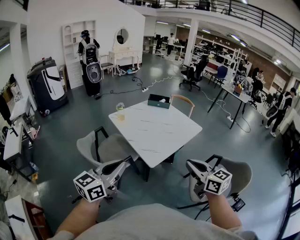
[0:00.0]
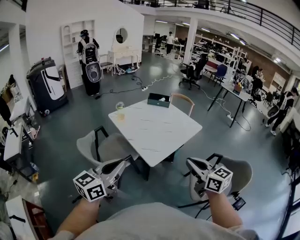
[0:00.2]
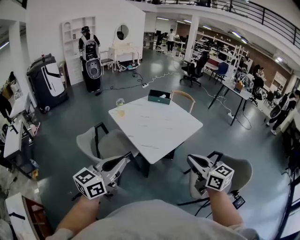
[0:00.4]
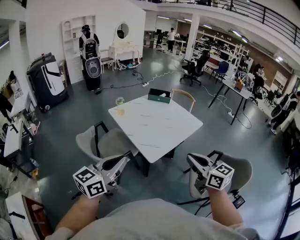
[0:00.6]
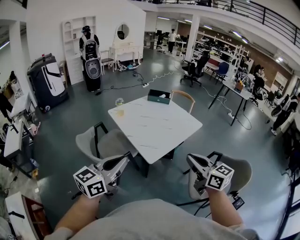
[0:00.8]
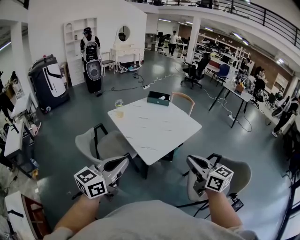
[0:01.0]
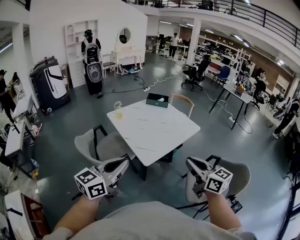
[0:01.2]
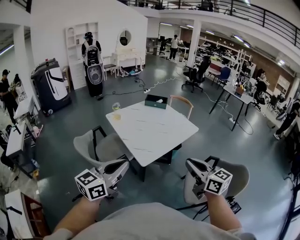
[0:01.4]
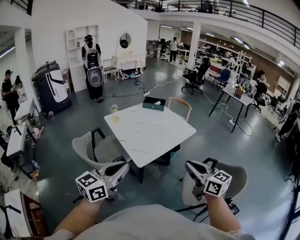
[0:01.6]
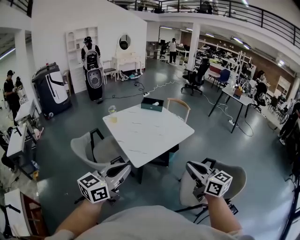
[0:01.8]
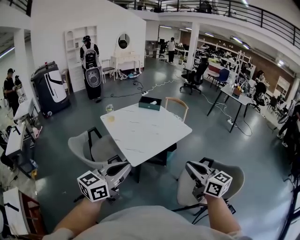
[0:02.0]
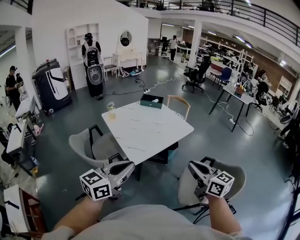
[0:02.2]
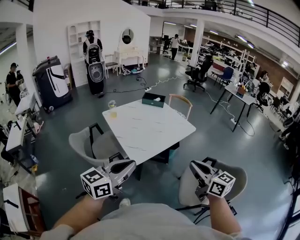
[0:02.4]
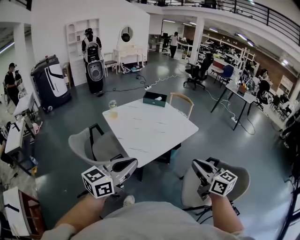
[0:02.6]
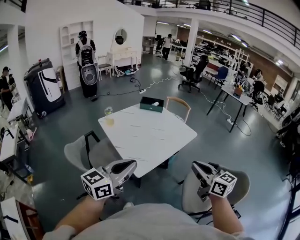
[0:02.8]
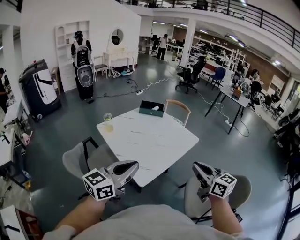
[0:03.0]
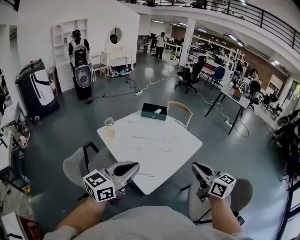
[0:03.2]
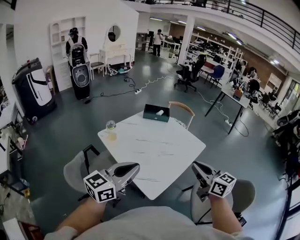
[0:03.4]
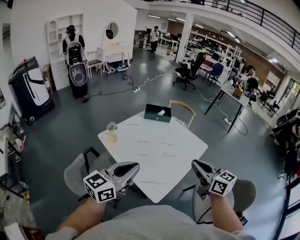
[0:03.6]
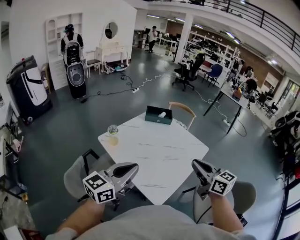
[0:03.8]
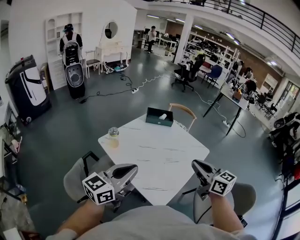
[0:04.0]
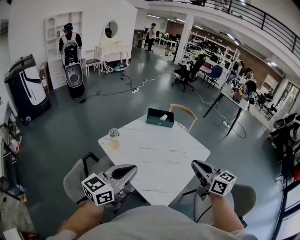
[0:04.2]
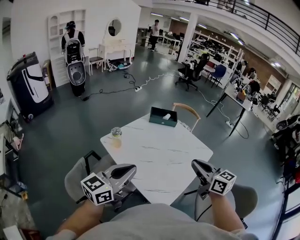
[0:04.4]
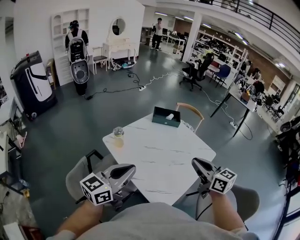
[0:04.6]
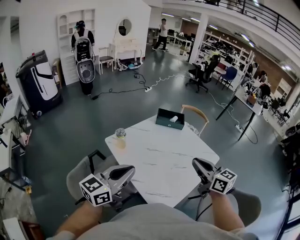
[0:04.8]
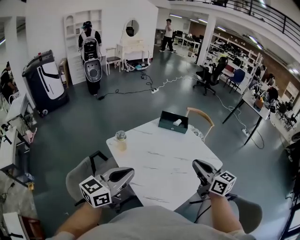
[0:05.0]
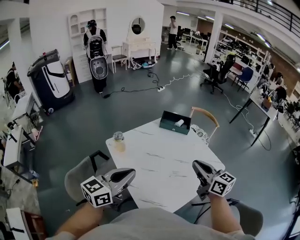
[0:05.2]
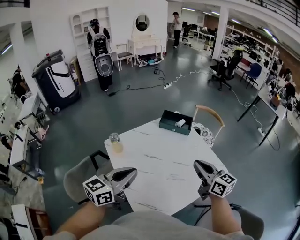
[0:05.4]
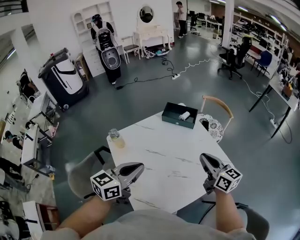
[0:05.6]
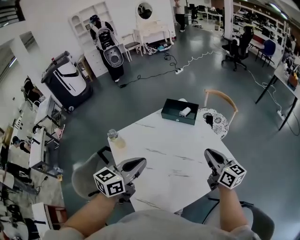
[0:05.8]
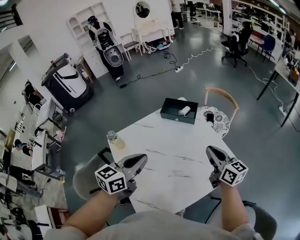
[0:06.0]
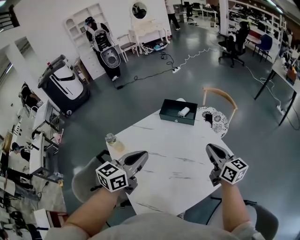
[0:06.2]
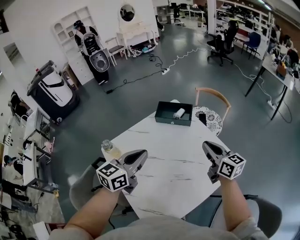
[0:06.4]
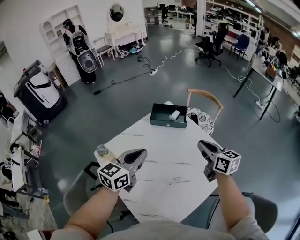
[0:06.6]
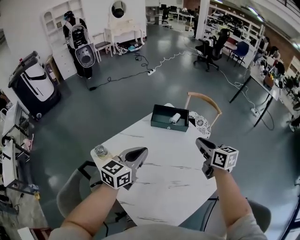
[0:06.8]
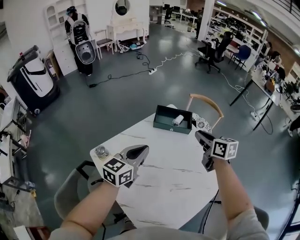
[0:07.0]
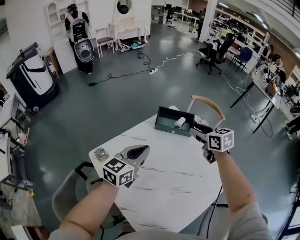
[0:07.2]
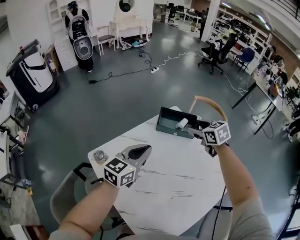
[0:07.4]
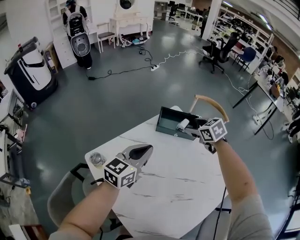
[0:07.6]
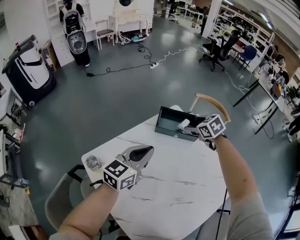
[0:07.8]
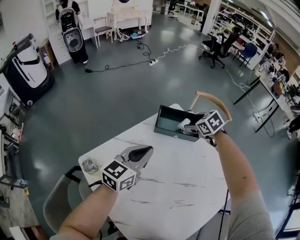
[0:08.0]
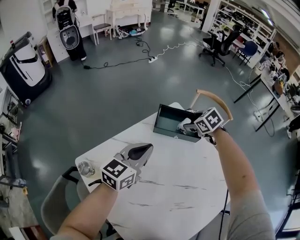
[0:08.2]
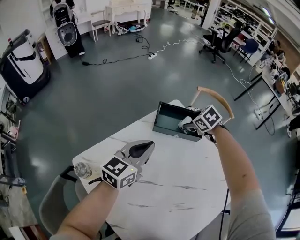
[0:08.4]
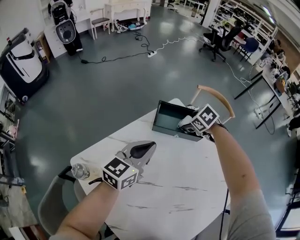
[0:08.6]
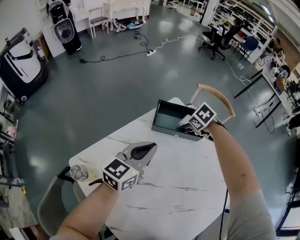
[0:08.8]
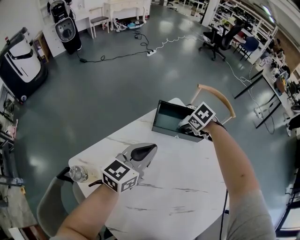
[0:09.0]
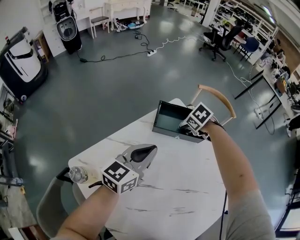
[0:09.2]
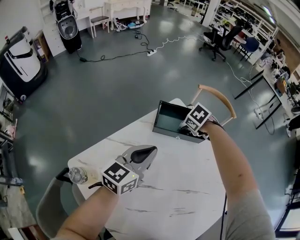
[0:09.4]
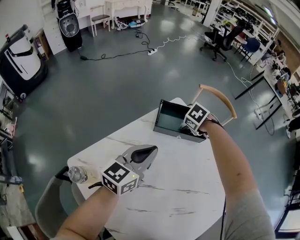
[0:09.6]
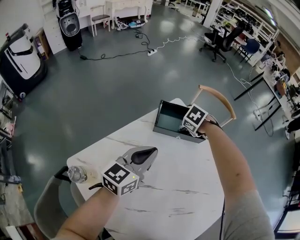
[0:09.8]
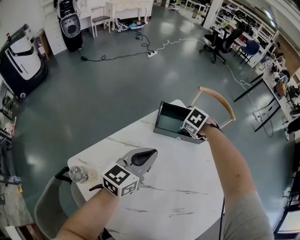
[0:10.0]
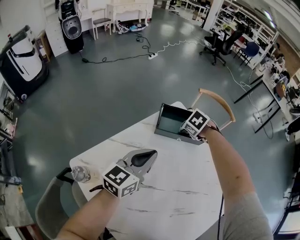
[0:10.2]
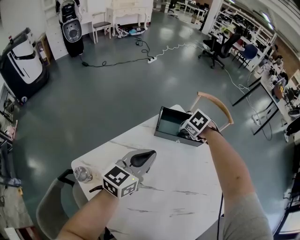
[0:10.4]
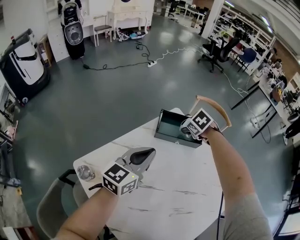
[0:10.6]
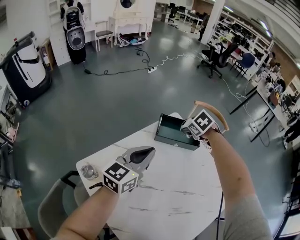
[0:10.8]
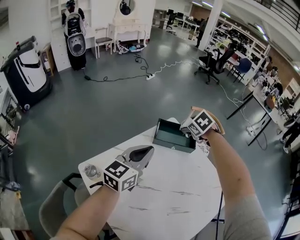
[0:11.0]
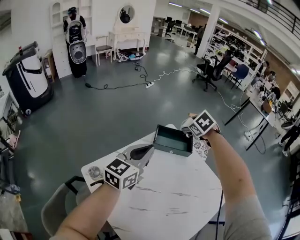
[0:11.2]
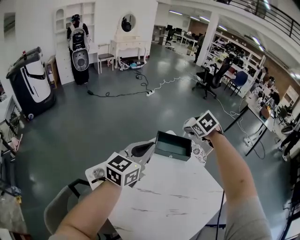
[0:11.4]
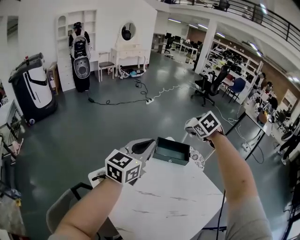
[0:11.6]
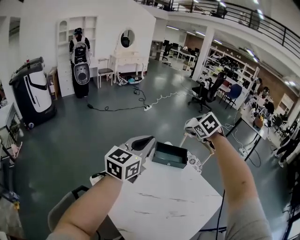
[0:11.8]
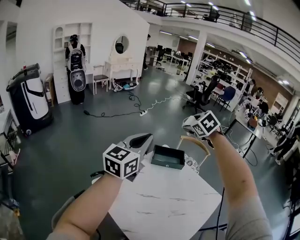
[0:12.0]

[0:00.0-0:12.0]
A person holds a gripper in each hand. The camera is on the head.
0:00.0 to 0:01.6: Both grippers travel together to the right, roughly 10 cm.
0:01.6 to 0:03.0: Both grippers travel together forward, about 15 cm.
0:03.0 to 0:04.4: The right gripper heads forward and to the left, covering roughly 25 cm. Meanwhile the left gripper moves to the left and forward, some 25 cm.
0:04.4 to 0:06.0: The right gripper travels forward, to the right and downward by some 35 cm, while the left gripper goes roughly 25 cm forward and to the right, and swivels some 30 degrees.
0:06.0 to 0:07.6: The right gripper is displaced forward and to the left by some 30 cm, tilts its fingers approximately 40 degrees downward, and opens its fingers. The left gripper goes some 20 cm forward.
0:07.6 to 0:09.0: The left gripper moves forward and downward, about 10 cm. Meanwhile the right gripper shifts roughly 15 cm downward and forward, and changes its angle by roughly 30 degrees.
0:09.0 to 0:10.4: The grippers make only small movements.
0:10.4 to 0:12.0: The grippers both shift upward by some 35 cm. The right gripper tilts its fingers about 30 degrees upward.

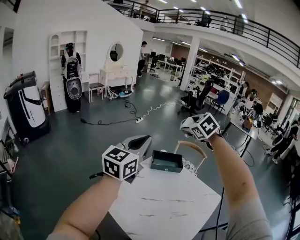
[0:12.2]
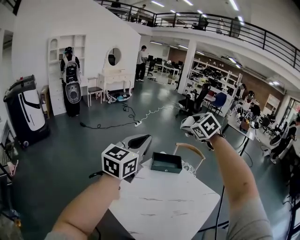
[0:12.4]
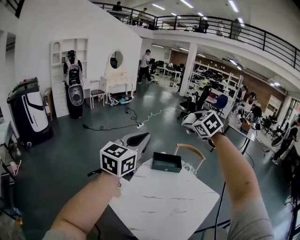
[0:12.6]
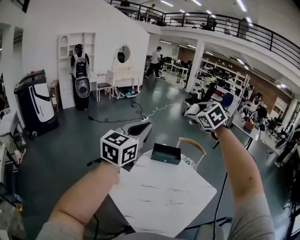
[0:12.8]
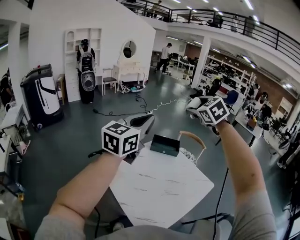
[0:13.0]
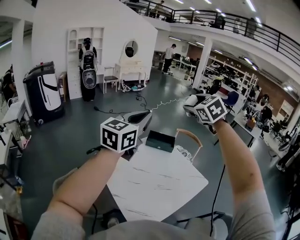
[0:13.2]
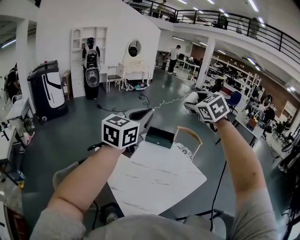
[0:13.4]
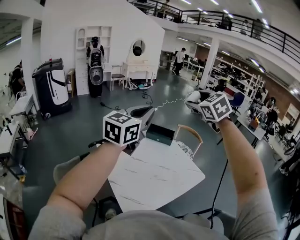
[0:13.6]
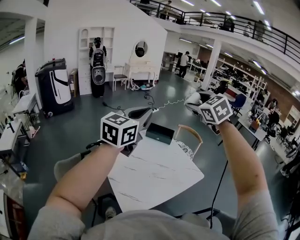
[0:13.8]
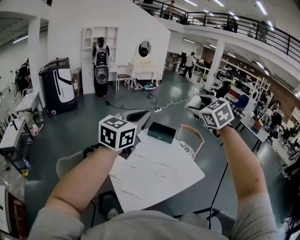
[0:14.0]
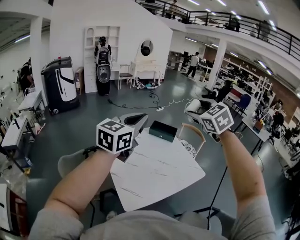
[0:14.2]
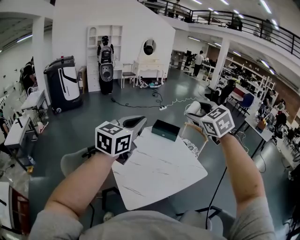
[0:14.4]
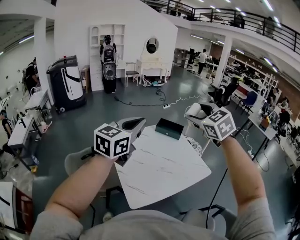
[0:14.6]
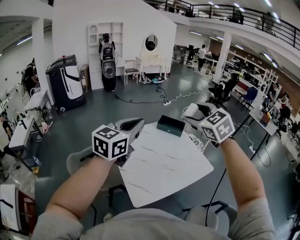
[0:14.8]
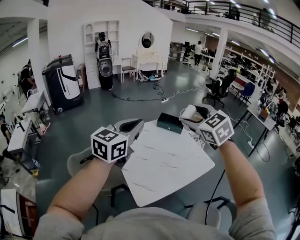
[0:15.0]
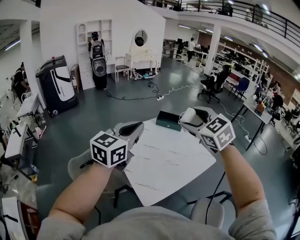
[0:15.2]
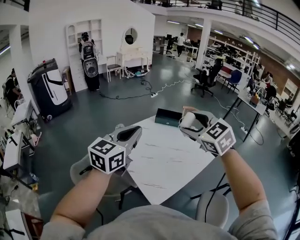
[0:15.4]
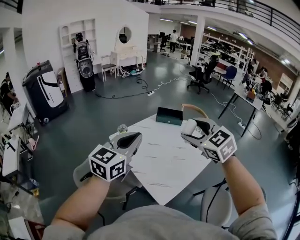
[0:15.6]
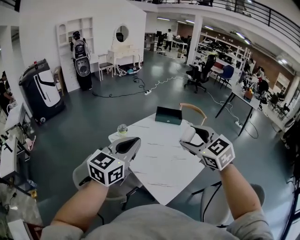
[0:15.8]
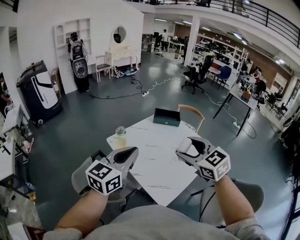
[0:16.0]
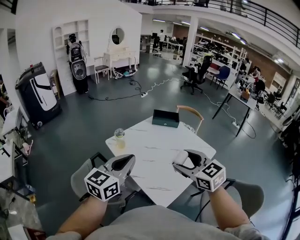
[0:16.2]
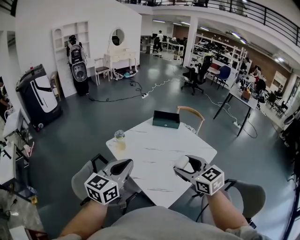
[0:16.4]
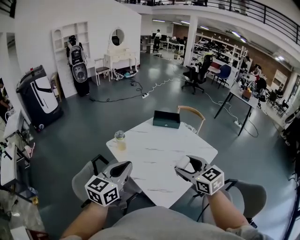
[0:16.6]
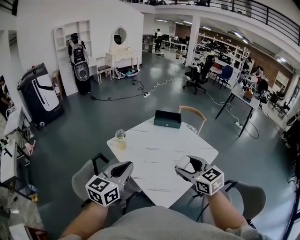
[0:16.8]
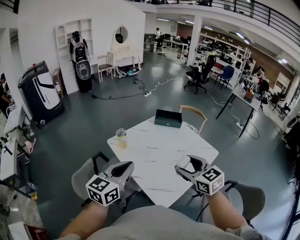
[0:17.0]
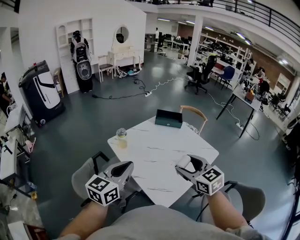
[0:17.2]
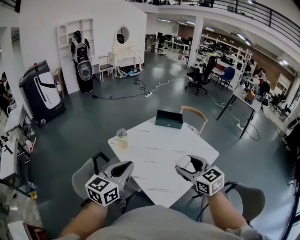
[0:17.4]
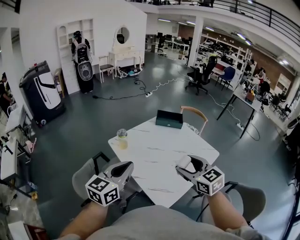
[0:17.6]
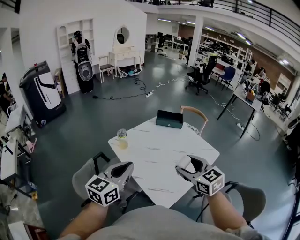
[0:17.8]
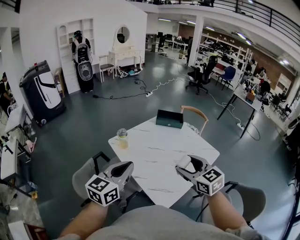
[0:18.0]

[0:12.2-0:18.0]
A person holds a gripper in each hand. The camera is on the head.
0:12.2 to 0:13.6: The right gripper moves backward, upward and to the right, about 30 cm, and turns by approximately 20 degrees, while the left gripper is displaced backward, to the right and upward by about 25 cm.
0:13.6 to 0:15.0: Both grippers move backward and downward, roughly 15 cm.
0:15.0 to 0:16.6: The left gripper heads downward and to the left, covering approximately 20 cm. The right gripper travels downward and backward by roughly 20 cm, and swivels about 30 degrees.
0:16.6 to 0:18.0: Neither gripper changes place.

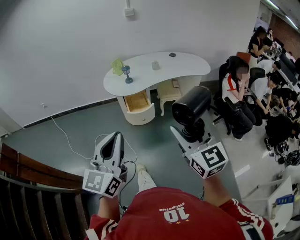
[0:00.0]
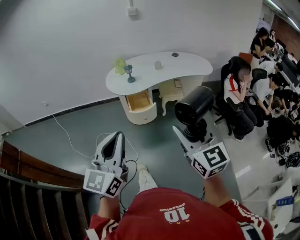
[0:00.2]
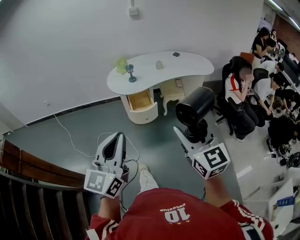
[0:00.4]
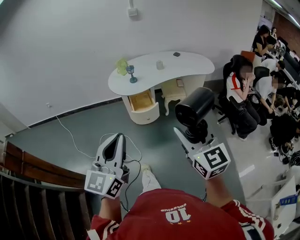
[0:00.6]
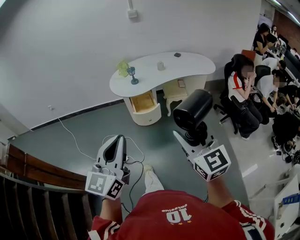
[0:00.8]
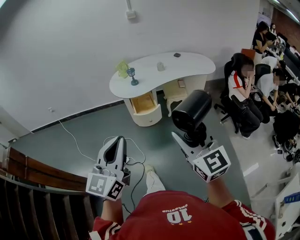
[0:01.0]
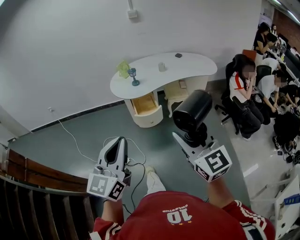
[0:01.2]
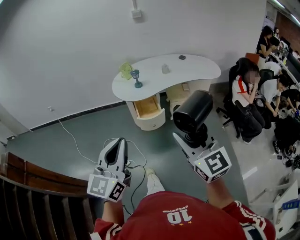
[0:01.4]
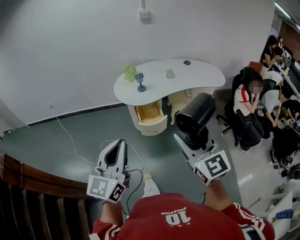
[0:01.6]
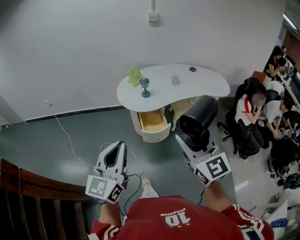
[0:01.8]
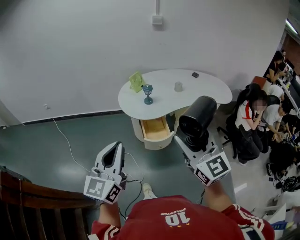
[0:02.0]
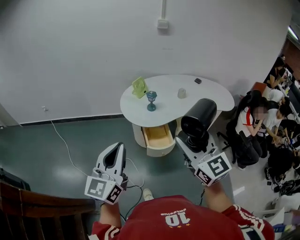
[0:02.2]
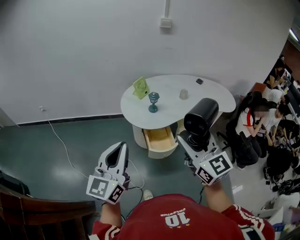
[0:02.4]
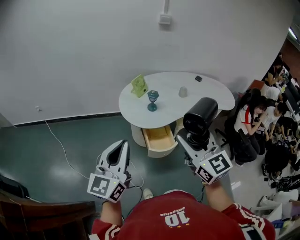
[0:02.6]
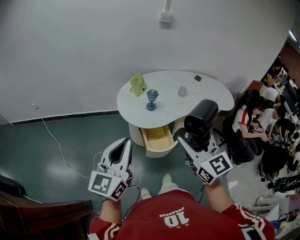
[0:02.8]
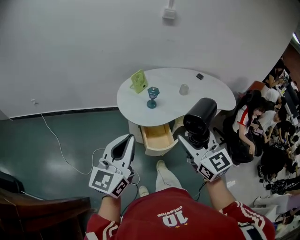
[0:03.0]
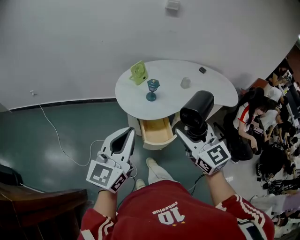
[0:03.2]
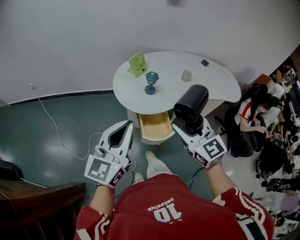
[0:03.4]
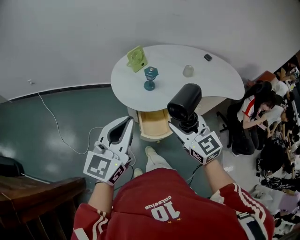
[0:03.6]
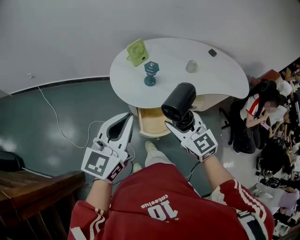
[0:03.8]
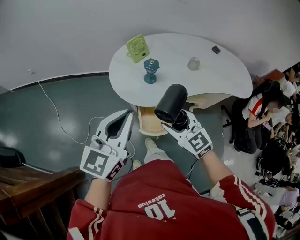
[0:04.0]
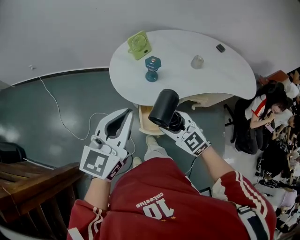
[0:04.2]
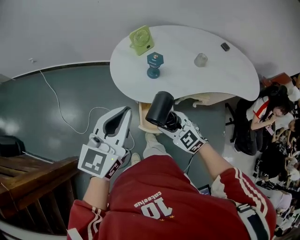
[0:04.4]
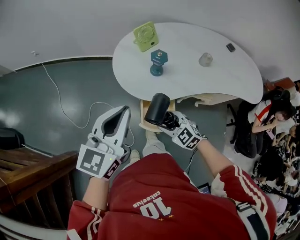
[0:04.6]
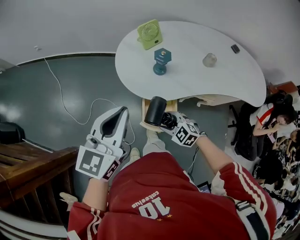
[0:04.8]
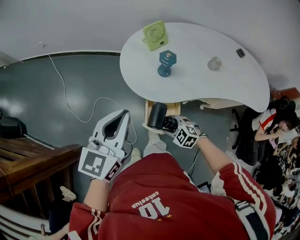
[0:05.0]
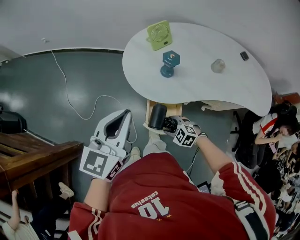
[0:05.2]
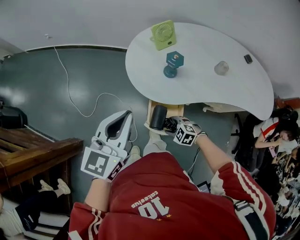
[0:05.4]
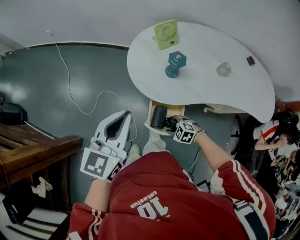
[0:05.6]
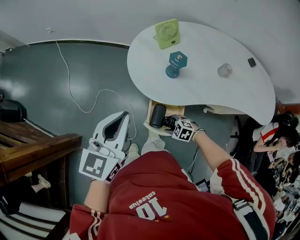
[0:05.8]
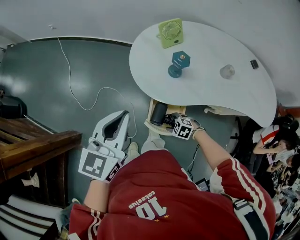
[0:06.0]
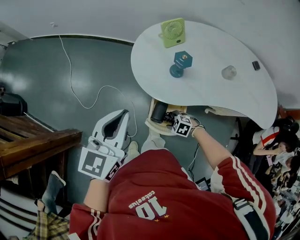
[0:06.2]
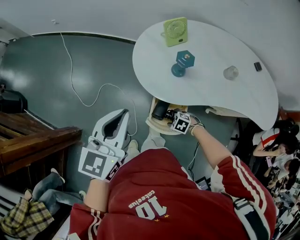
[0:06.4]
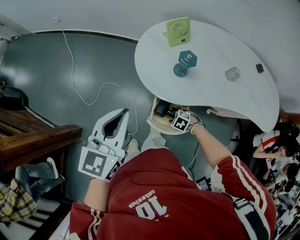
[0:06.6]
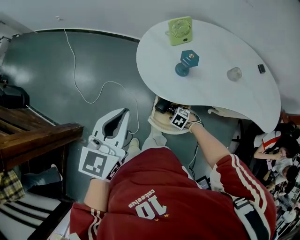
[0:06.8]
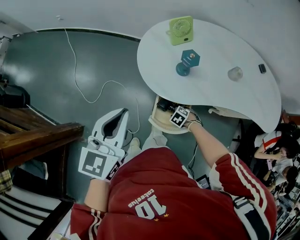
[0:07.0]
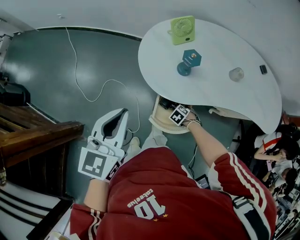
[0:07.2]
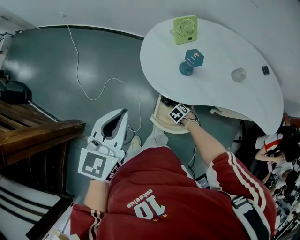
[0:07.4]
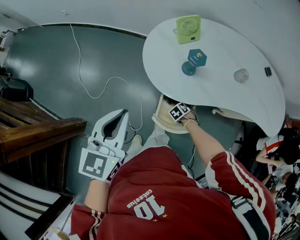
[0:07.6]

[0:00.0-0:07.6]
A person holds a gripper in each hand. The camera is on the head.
0:00.0 to 0:01.6: Both grippers move forward and to the left, some 10 cm.
0:01.6 to 0:03.0: The left gripper moves forward, approximately 25 cm; the right gripper moves forward and to the left, about 30 cm.
0:03.0 to 0:04.6: The right gripper goes some 35 cm downward, and angles its fingers downward, by roughly 30 degrees, while the left gripper goes some 20 cm forward, downward and to the right.
0:04.6 to 0:06.0: The right gripper goes about 20 cm downward, and changes its angle by approximately 40 degrees; the left gripper moves some 5 cm.
0:06.0 to 0:07.6: The right gripper travels downward by roughly 10 cm, and rotates about 40 degrees.
